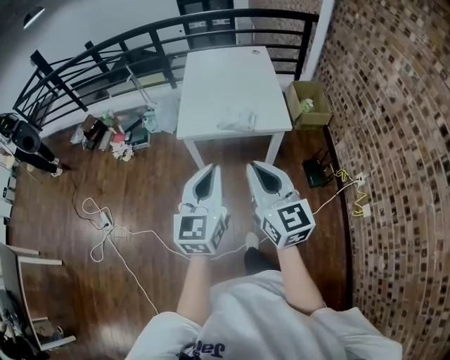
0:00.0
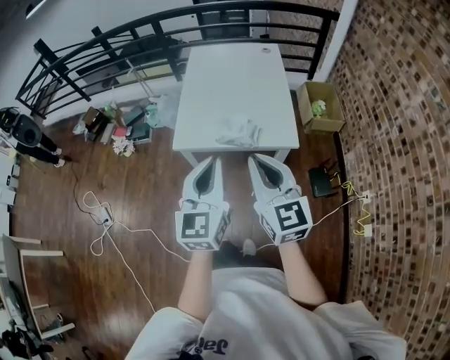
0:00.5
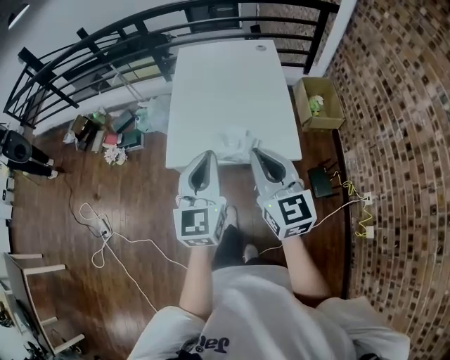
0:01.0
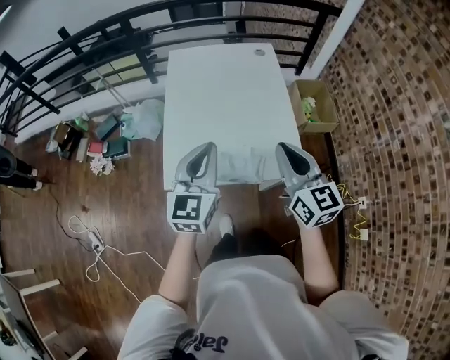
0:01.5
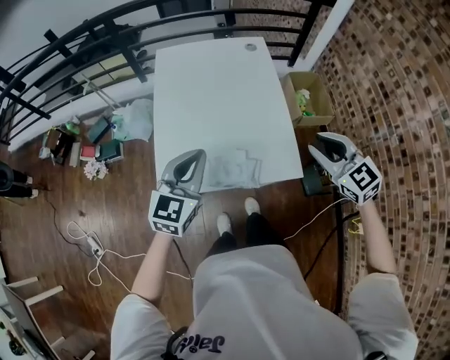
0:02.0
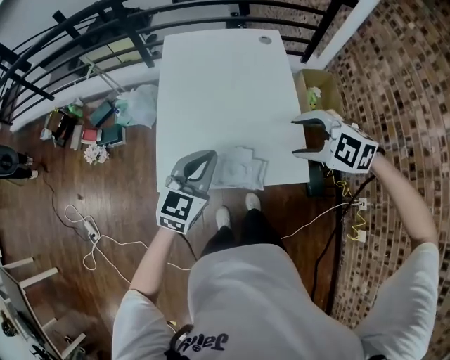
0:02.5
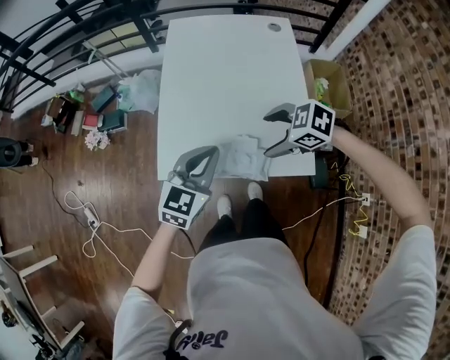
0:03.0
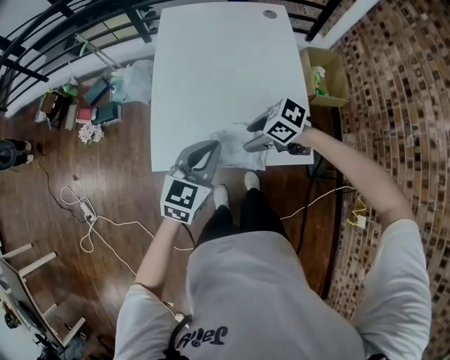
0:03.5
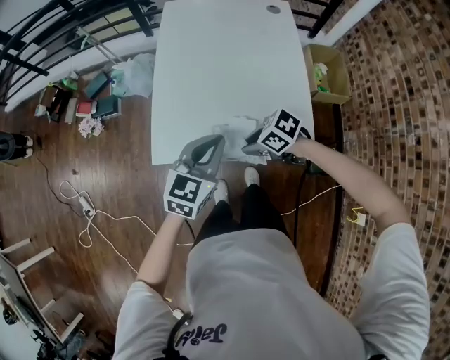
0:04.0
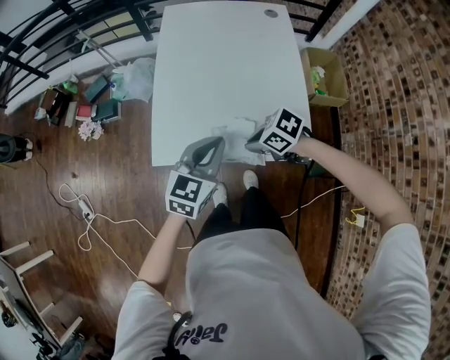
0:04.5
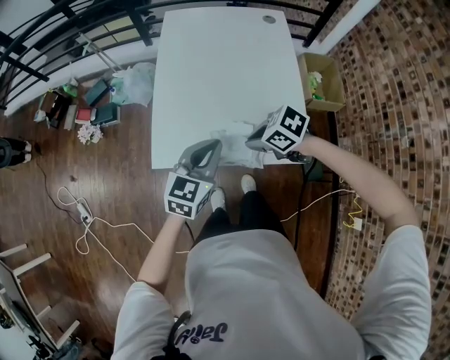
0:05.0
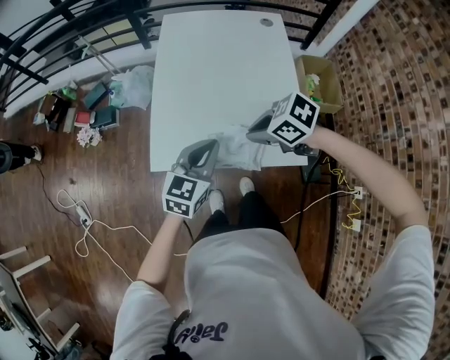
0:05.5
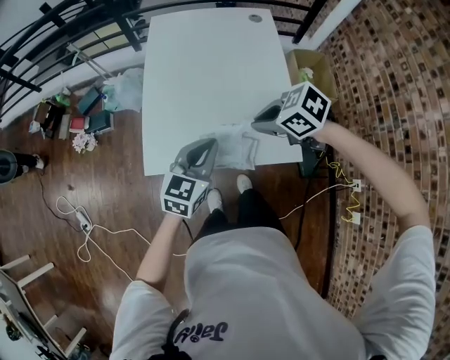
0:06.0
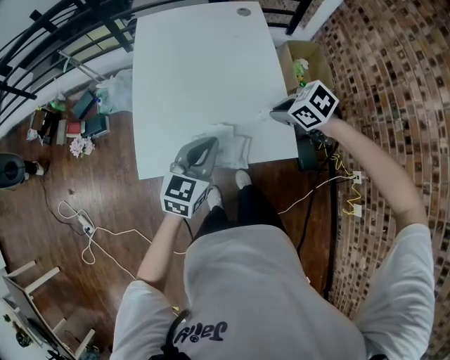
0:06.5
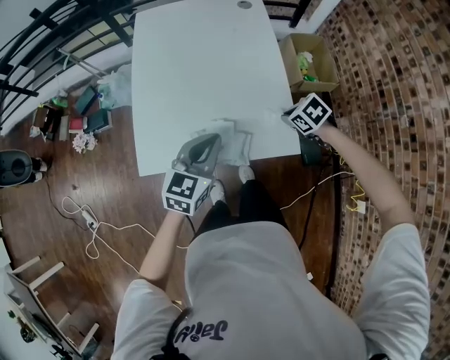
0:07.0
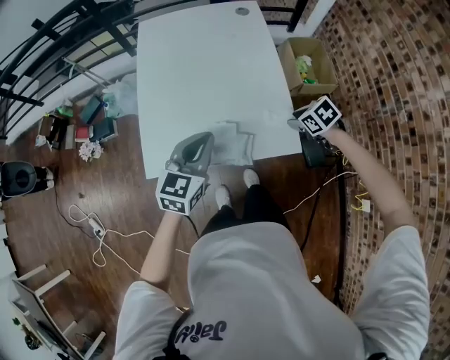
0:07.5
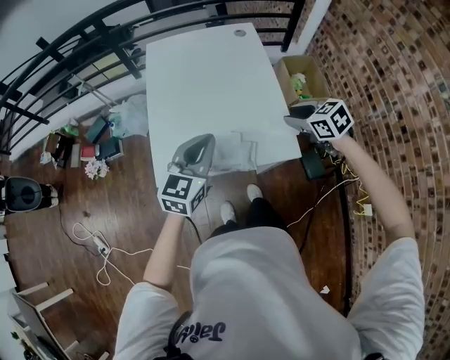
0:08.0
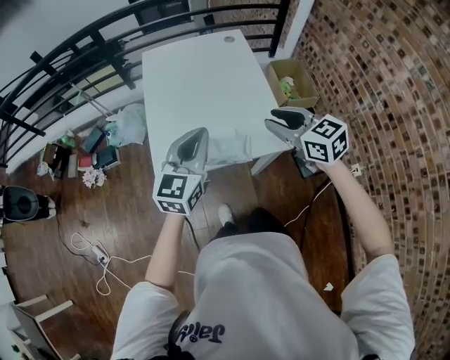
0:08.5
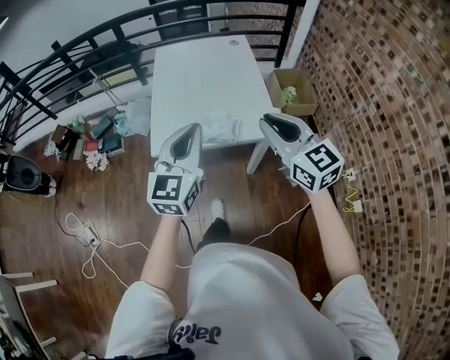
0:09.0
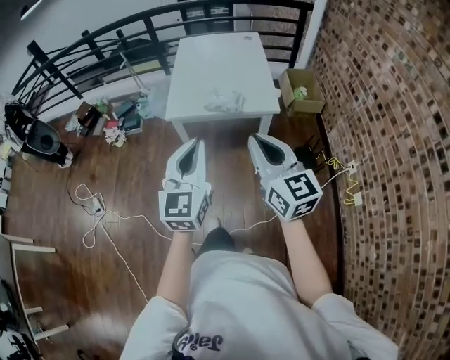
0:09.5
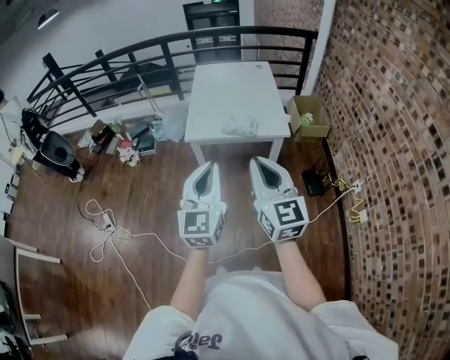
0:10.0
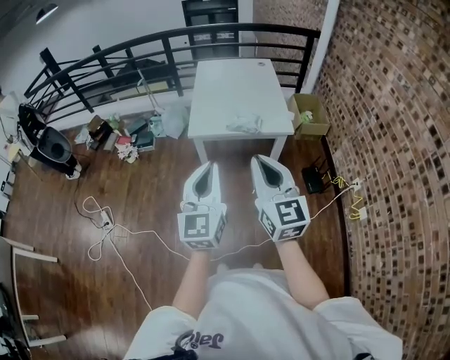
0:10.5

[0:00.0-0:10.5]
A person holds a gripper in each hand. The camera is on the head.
0:00.0 to 0:02.0: The pair of grippers is taken forward, about 40 cm. The left gripper turns by approximately 20 degrees; the right gripper changes its angle by roughly 30 degrees.
0:02.0 to 0:04.0: The left gripper moves downward, approximately 10 cm. Meanwhile the right gripper travels downward by approximately 25 cm, turns by approximately 60 degrees, and opens, then closes again.
0:04.0 to 0:06.5: The left gripper ends up approximately 5 cm from where it was; the right gripper changes place by approximately 20 cm, and changes its angle by approximately 20 degrees.
0:06.5 to 0:08.5: The left gripper heads upward and to the left, covering approximately 15 cm. The right gripper heads upward and backward, covering about 20 cm, and points its fingers about 30 degrees further upward.
0:08.5 to 0:10.5: The two grippers travel together, backward, about 40 cm. The right gripper swivels roughly 30 degrees. The left gripper changes its angle by some 30 degrees.

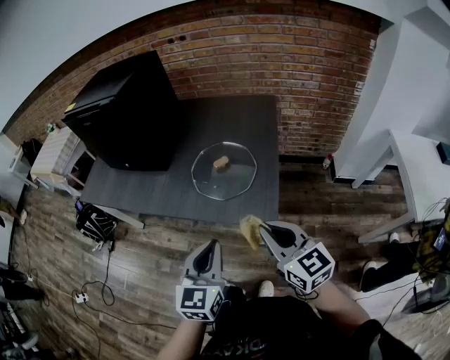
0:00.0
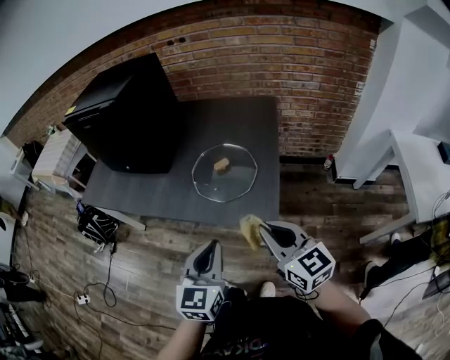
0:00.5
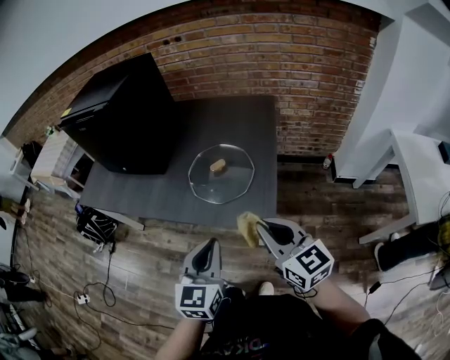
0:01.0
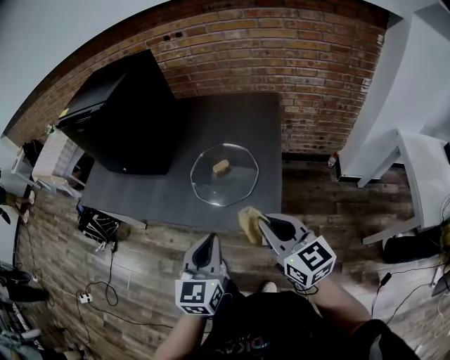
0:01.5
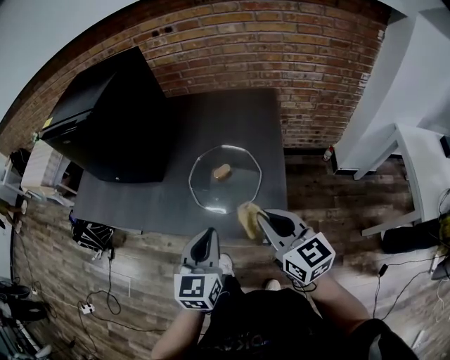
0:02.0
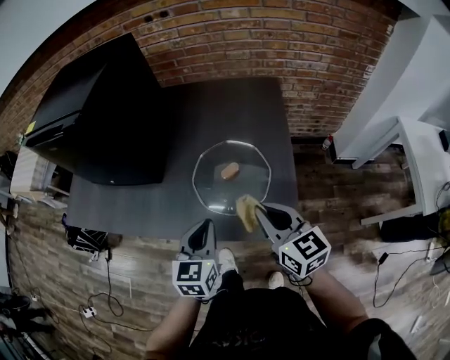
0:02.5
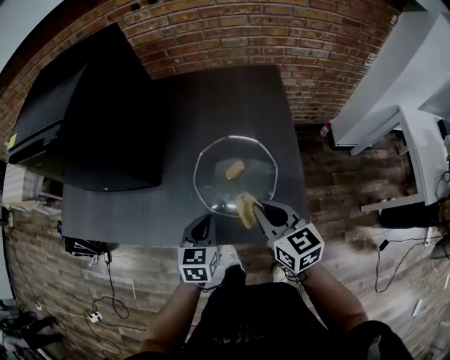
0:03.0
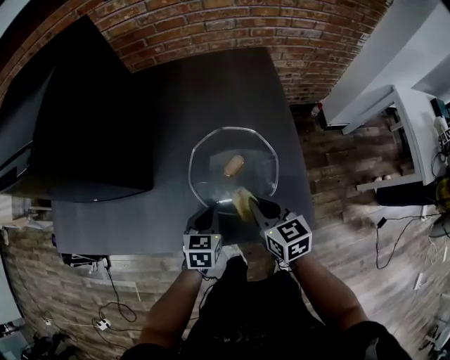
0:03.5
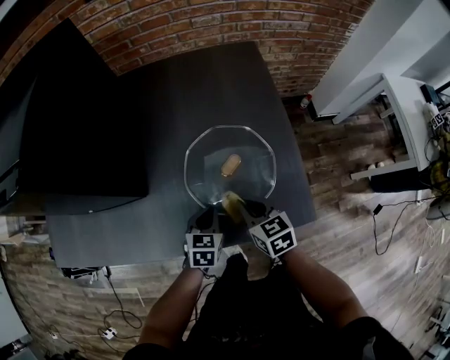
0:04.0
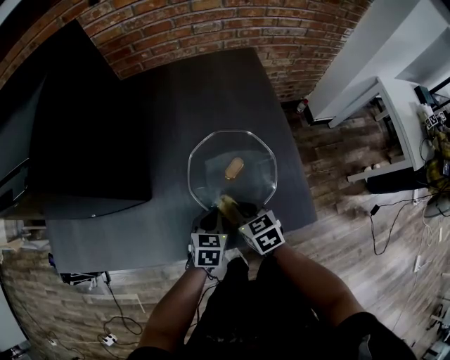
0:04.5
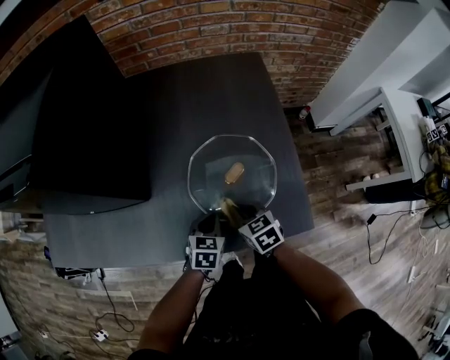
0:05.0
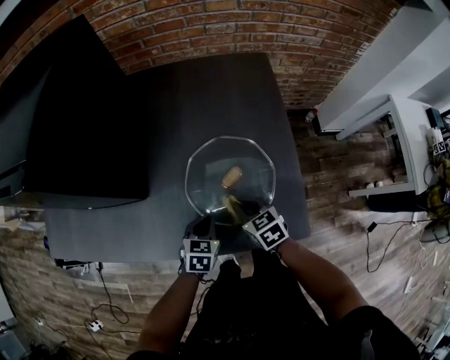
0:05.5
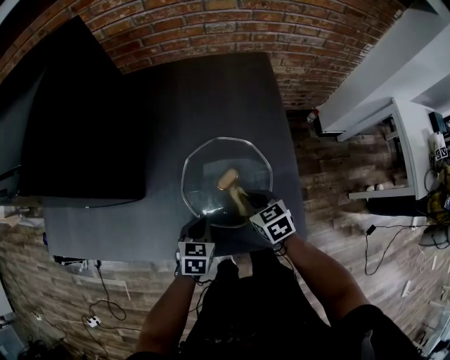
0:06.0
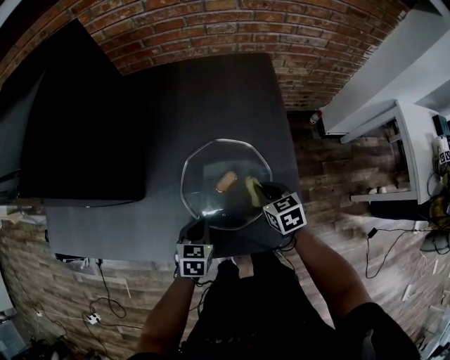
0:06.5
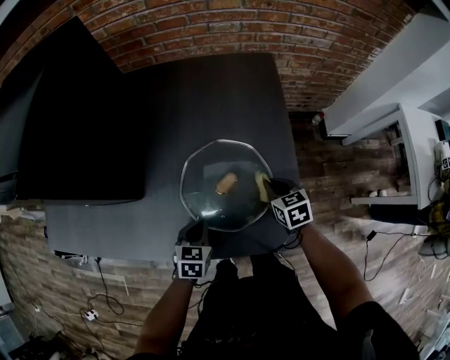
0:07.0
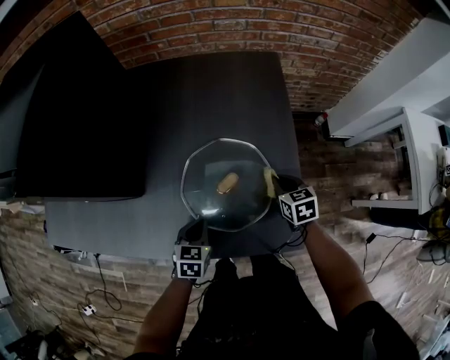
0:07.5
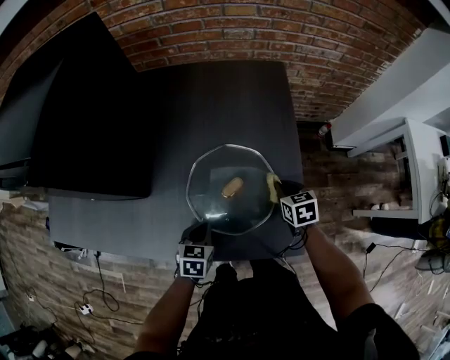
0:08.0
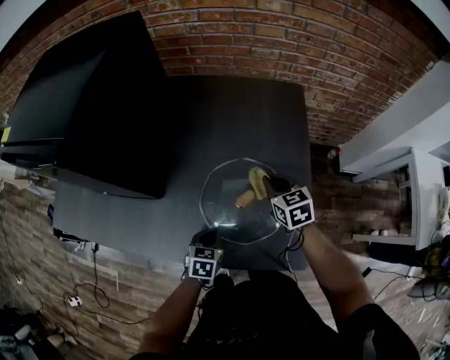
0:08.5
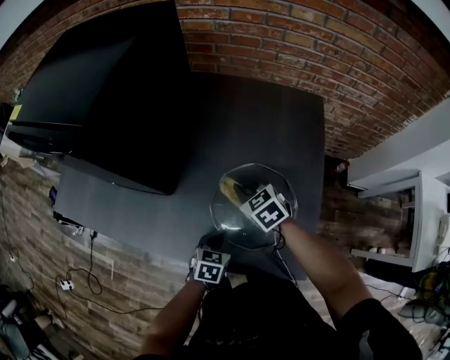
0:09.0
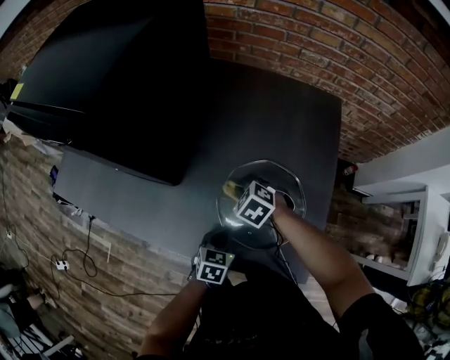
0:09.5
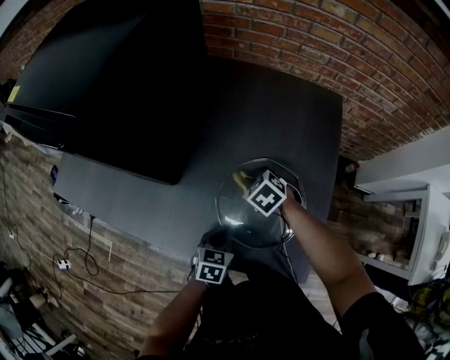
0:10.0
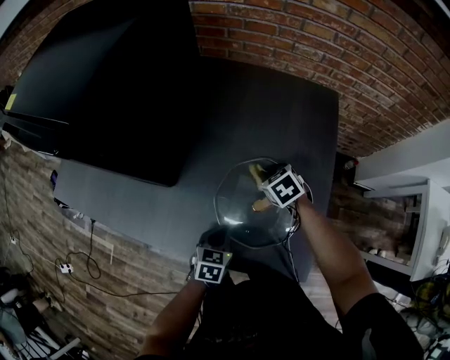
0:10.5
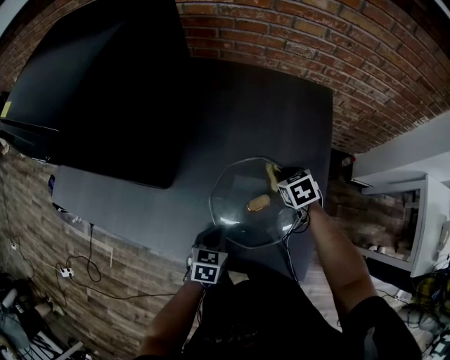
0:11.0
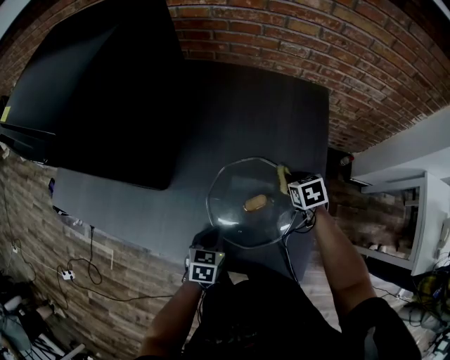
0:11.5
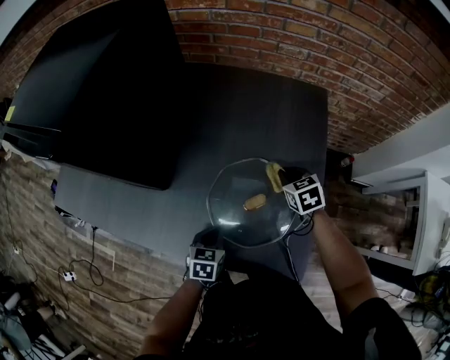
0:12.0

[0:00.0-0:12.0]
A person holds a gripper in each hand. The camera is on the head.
0:00.0 to 0:02.0: Both grippers travel together forward, some 15 cm.
0:02.0 to 0:04.0: The right gripper moves downward, forward and to the left, approximately 30 cm, and turns by about 30 degrees. Meanwhile the left gripper moves downward and forward, roughly 30 cm, and turns by about 30 degrees.
0:04.0 to 0:06.0: The right gripper goes approximately 5 cm forward.
0:06.0 to 0:08.0: The right gripper shifts approximately 15 cm to the right and forward.
0:08.0 to 0:10.0: The right gripper heads to the left and forward, covering approximately 25 cm, and twists approximately 40 degrees counterclockwise, seen from behind.
0:10.0 to 0:12.0: The right gripper moves to the right, roughly 15 cm, and rotates roughly 30 degrees.

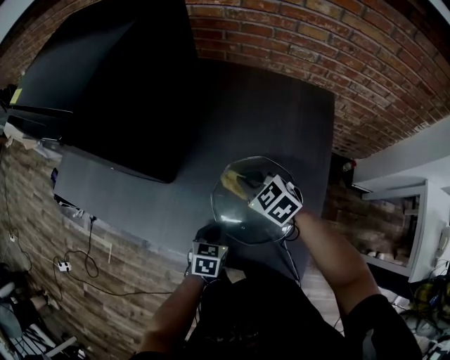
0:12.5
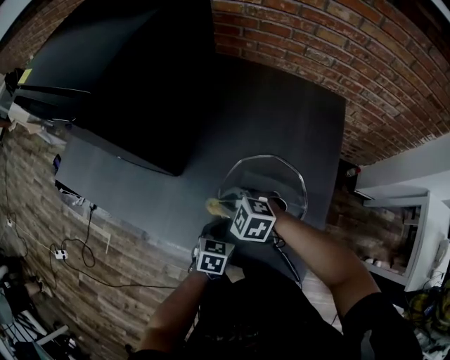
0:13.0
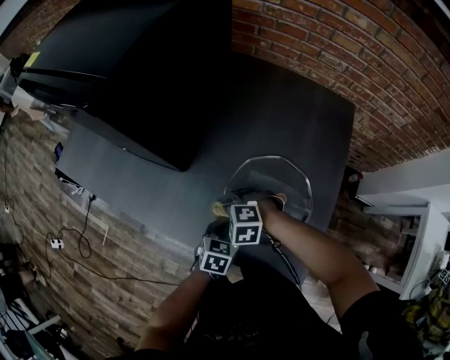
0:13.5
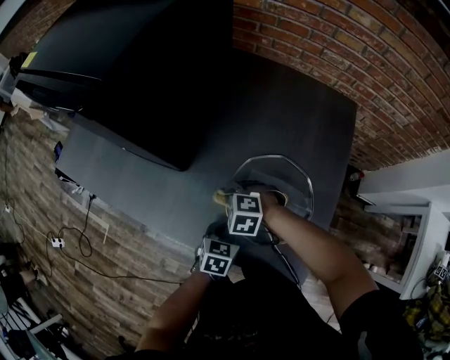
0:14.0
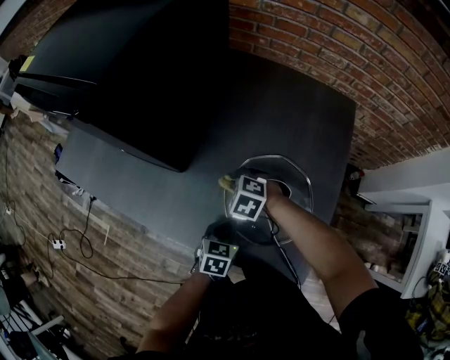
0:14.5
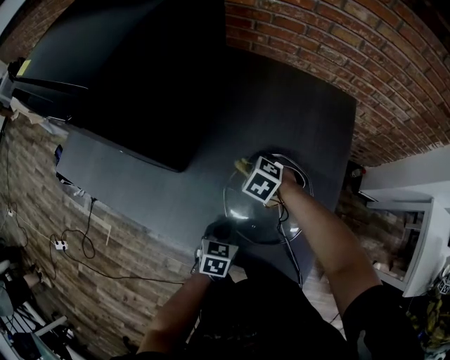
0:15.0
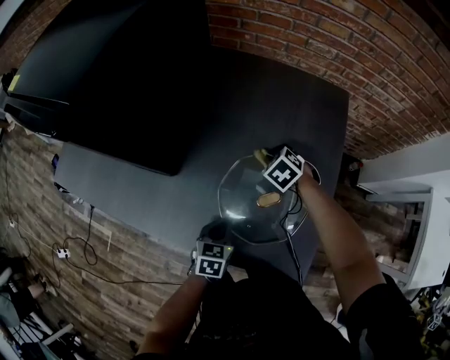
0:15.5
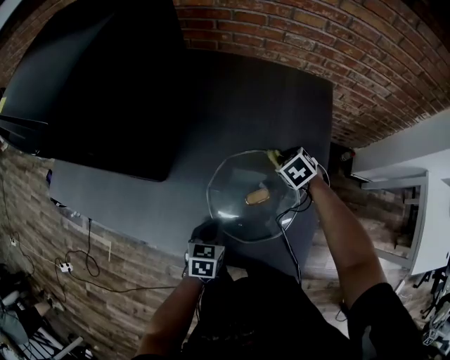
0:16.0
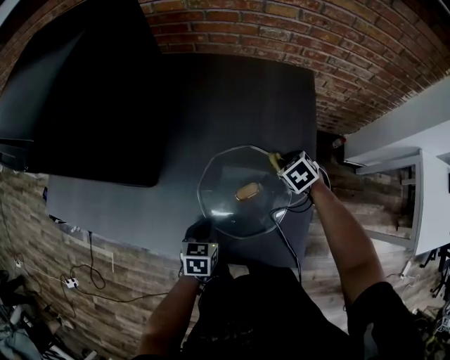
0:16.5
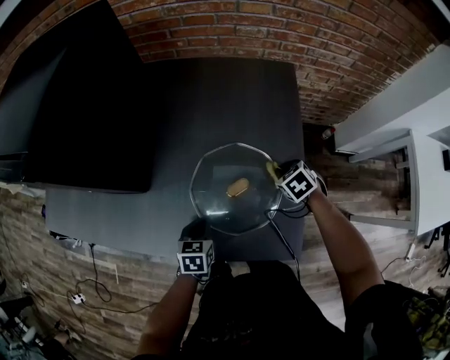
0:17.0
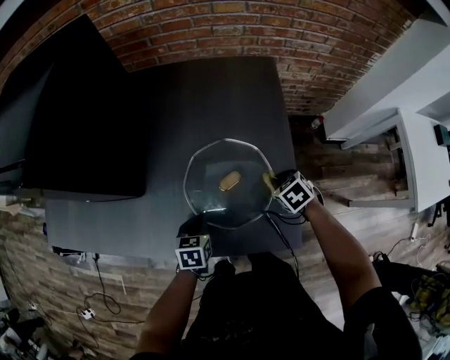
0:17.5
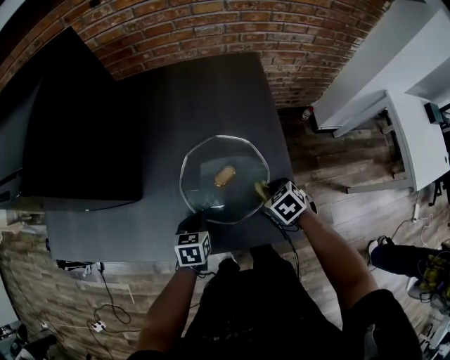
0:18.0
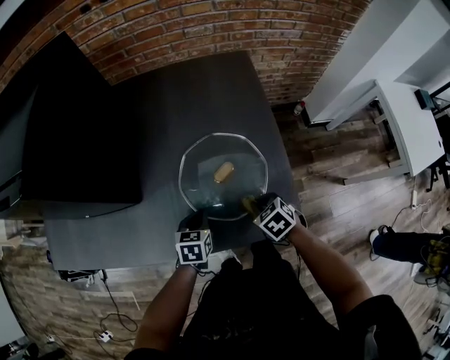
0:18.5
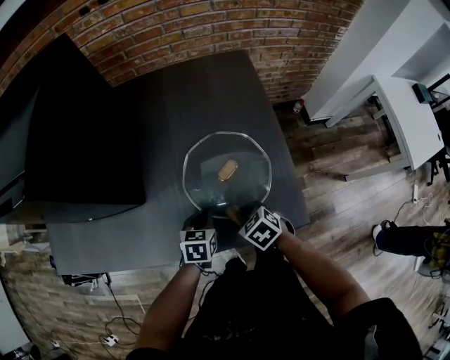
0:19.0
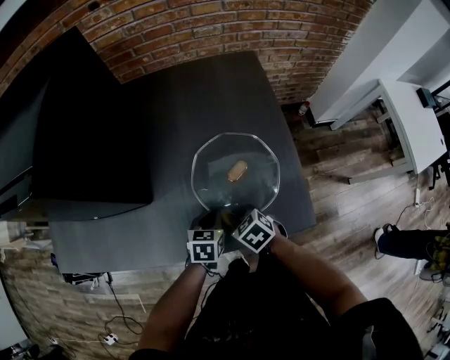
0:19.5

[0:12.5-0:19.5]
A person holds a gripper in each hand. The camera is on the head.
0:12.5 to 0:14.5: The right gripper goes about 10 cm downward and to the left, and swivels about 30 degrees.
0:14.5 to 0:16.0: The right gripper moves to the right, approximately 25 cm, and swivels approximately 40 degrees.
0:16.0 to 0:17.5: The right gripper is displaced backward and to the right by roughly 15 cm.
0:17.5 to 0:19.5: The right gripper is displaced to the left and backward by roughly 25 cm.
